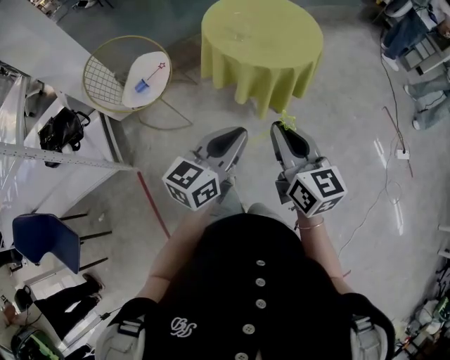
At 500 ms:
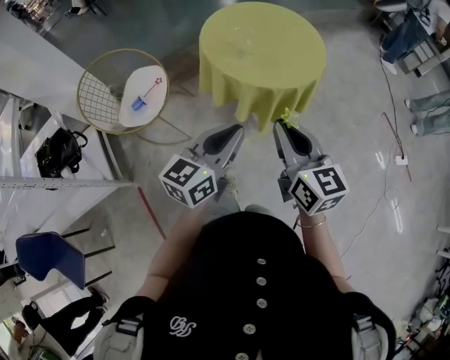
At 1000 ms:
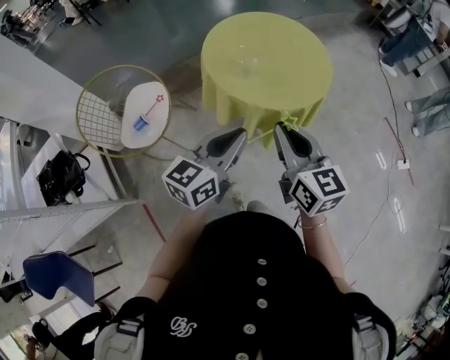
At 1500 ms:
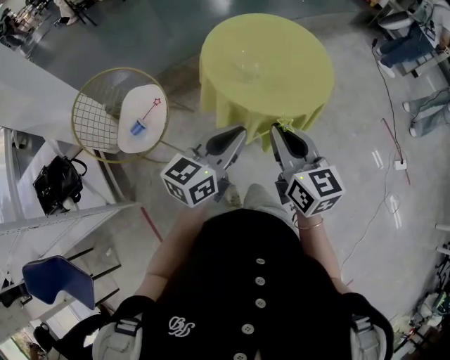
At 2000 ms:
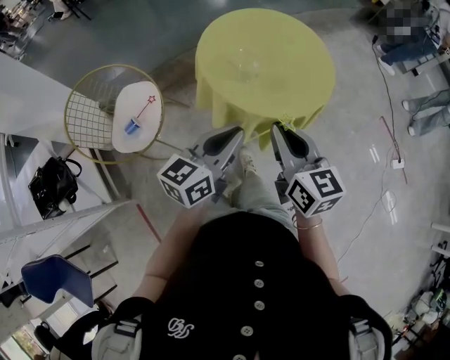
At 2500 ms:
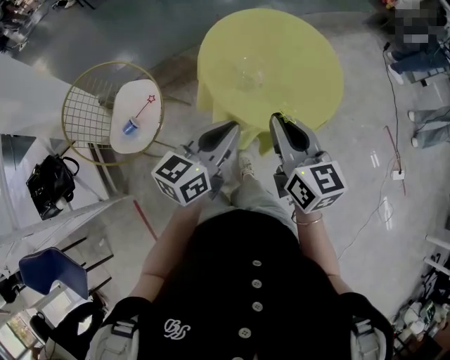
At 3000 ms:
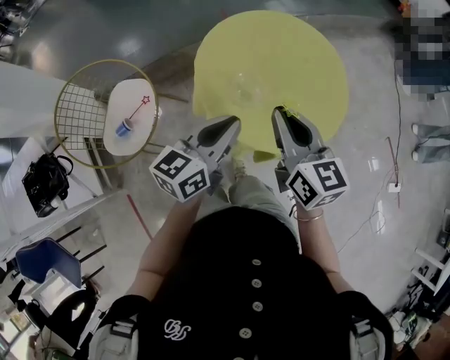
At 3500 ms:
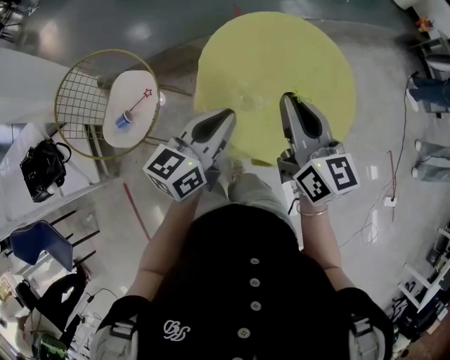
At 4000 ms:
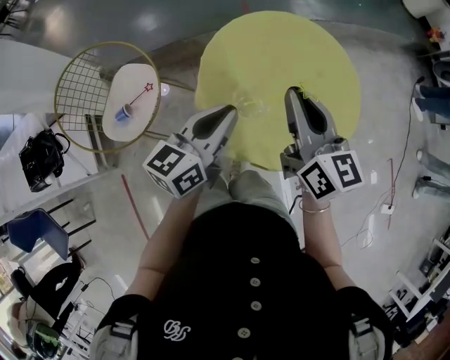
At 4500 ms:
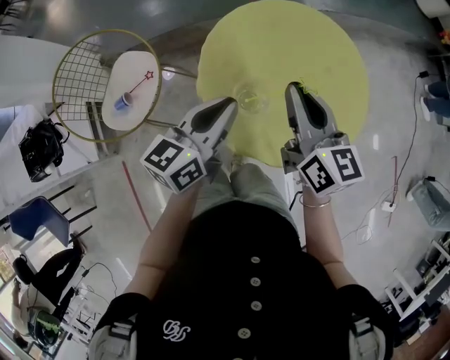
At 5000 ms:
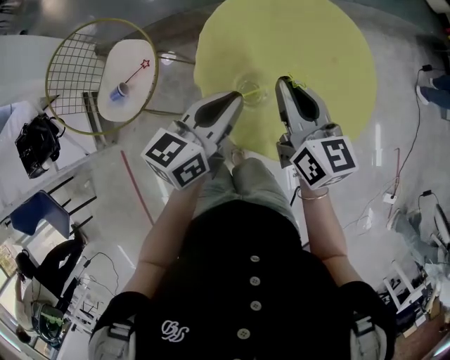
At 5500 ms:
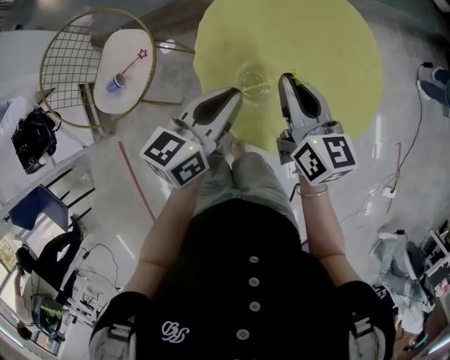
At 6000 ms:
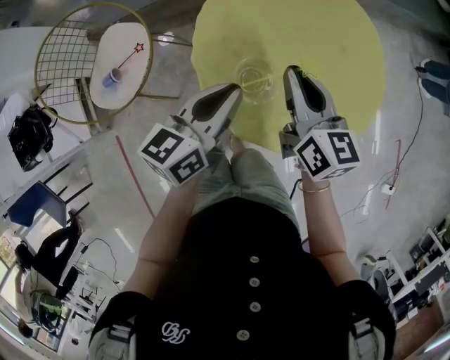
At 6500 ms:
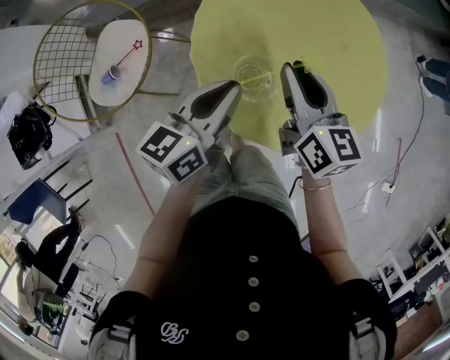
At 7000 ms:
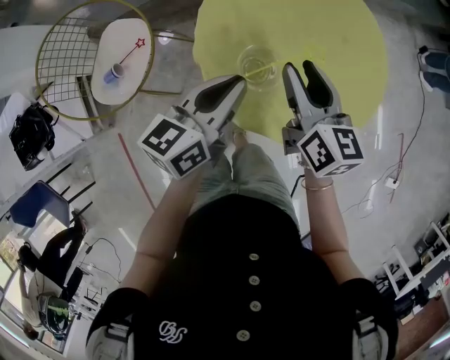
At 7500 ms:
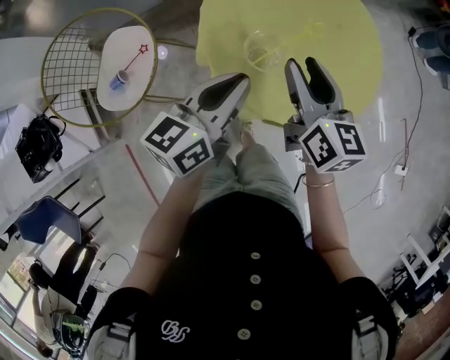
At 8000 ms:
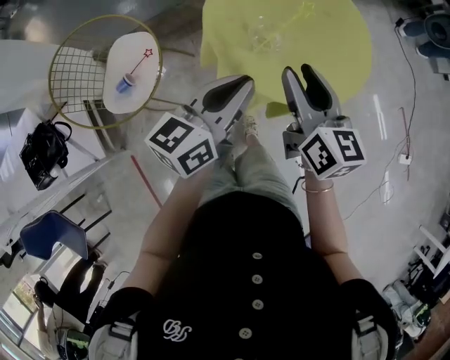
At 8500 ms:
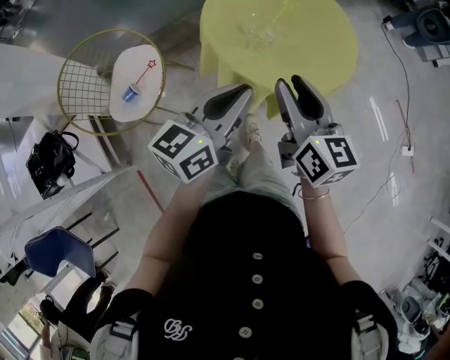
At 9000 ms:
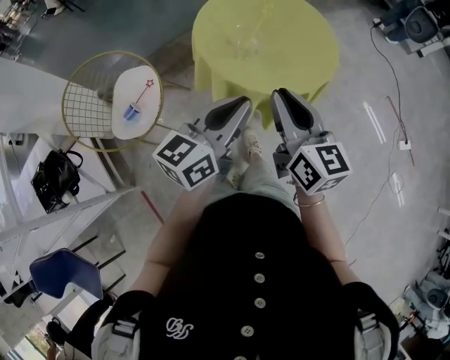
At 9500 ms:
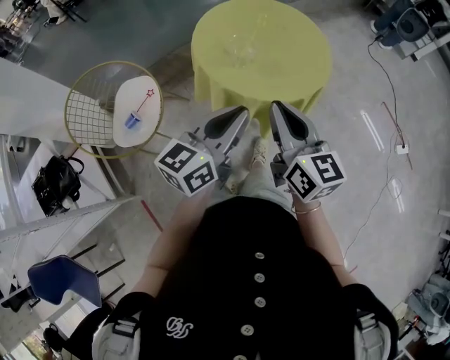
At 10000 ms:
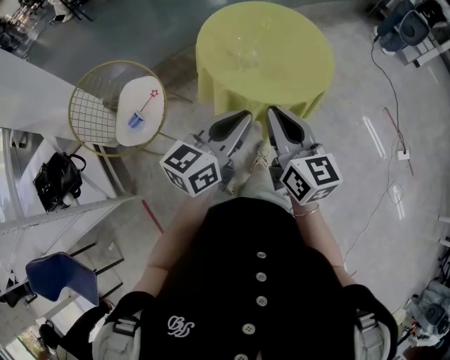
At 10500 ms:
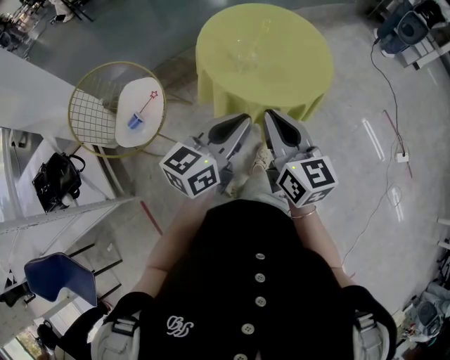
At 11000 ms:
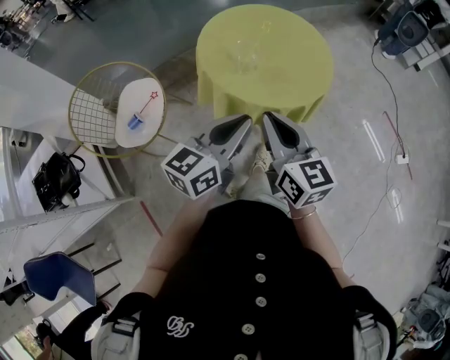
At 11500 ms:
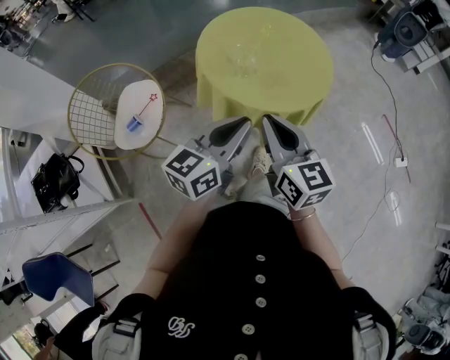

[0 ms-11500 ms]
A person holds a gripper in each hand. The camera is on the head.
0 ms to 2000 ms: Both grippers move forward, roughly 25 cm.
2000 ms to 4000 ms: The grippers both shift forward by some 25 cm.
4000 ms to 6000 ms: The right gripper shifts about 10 cm downward, while the left gripper heads downward, covering approximately 5 cm.
6000 ms to 7500 ms: The left gripper ends up approximately 5 cm from where it was, while the right gripper heads backward, covering roughly 5 cm, and opens its fingers.
7500 ms to 9500 ms: The right gripper travels backward by some 25 cm, and closes up. Meanwhile the left gripper moves backward and upward, approximately 20 cm, and changes its angle by approximately 20 degrees.
9500 ms to 11500 ms: The grippers move only a little.

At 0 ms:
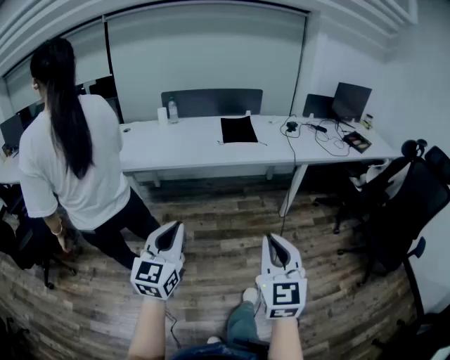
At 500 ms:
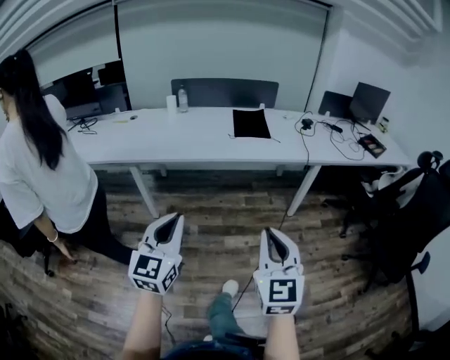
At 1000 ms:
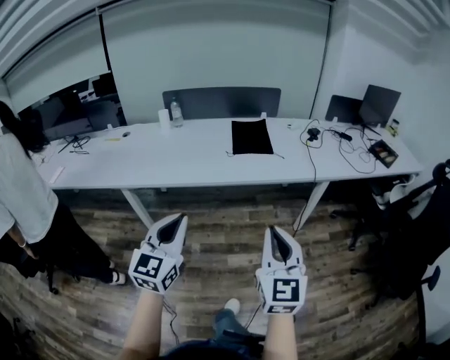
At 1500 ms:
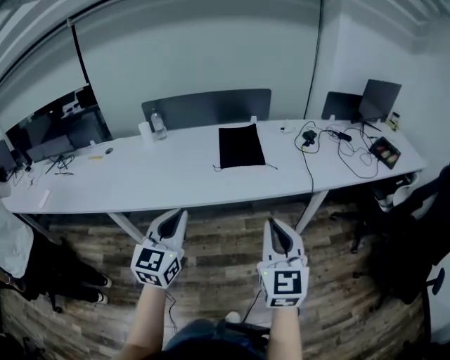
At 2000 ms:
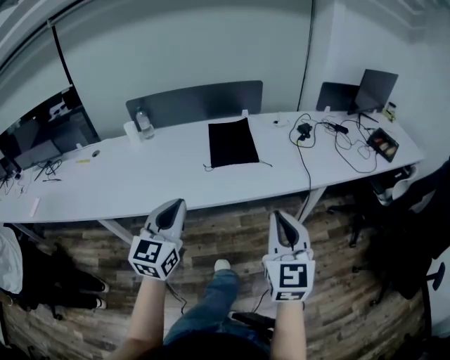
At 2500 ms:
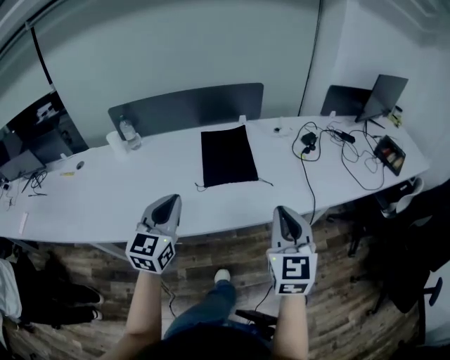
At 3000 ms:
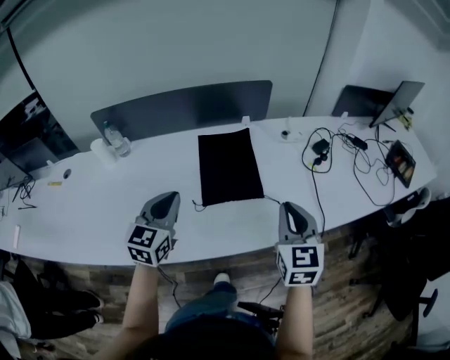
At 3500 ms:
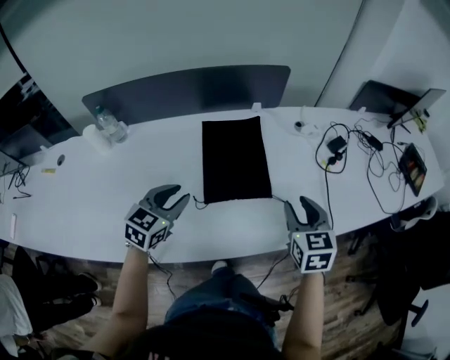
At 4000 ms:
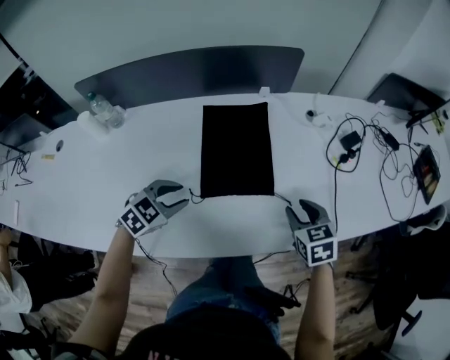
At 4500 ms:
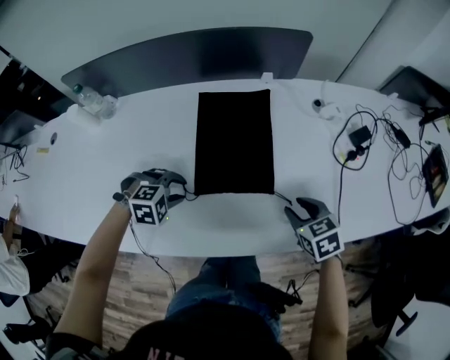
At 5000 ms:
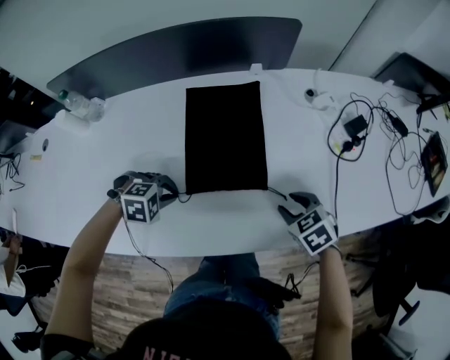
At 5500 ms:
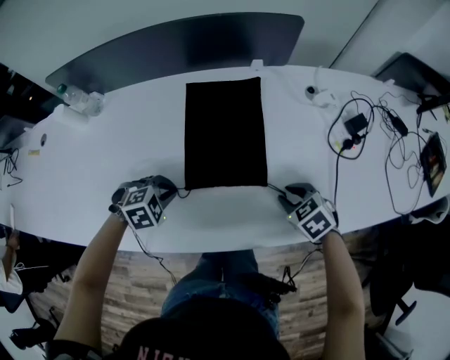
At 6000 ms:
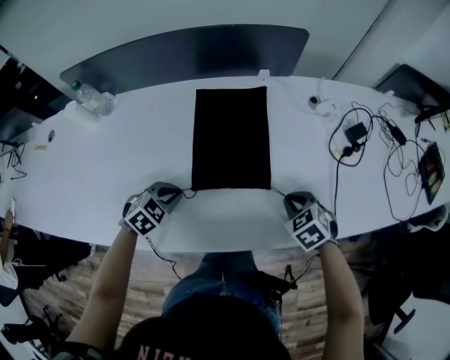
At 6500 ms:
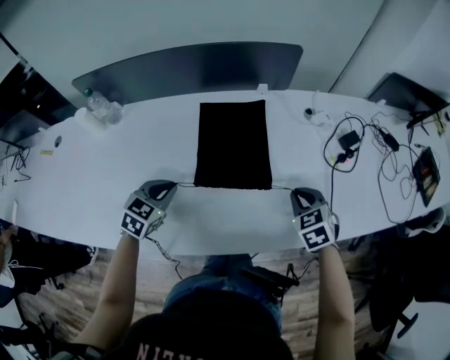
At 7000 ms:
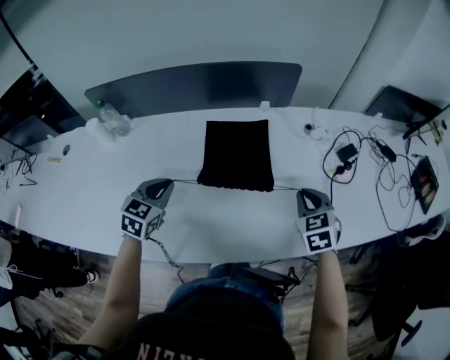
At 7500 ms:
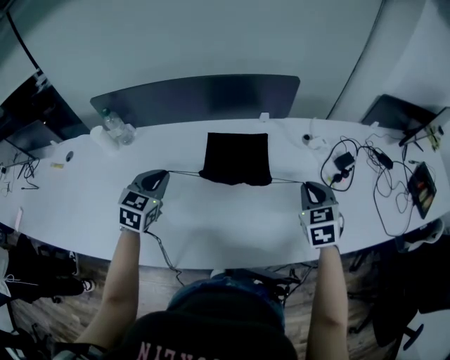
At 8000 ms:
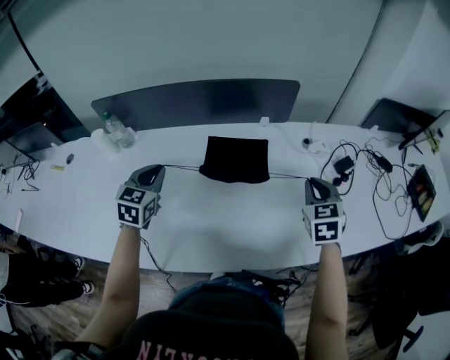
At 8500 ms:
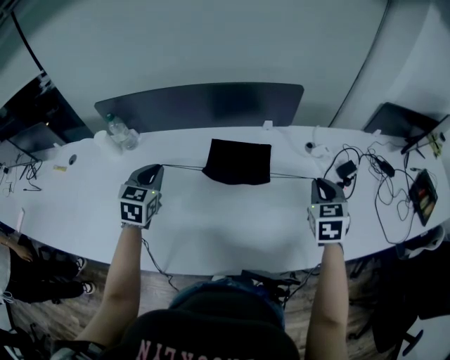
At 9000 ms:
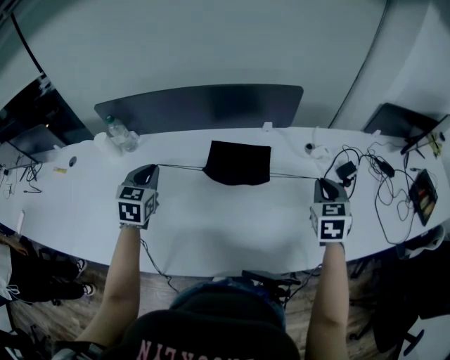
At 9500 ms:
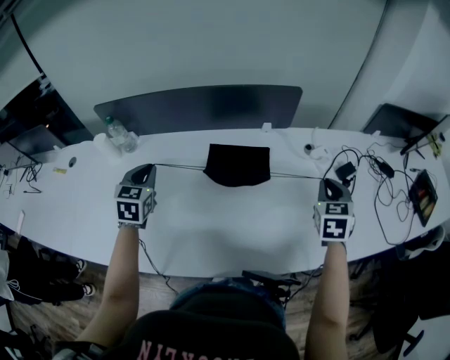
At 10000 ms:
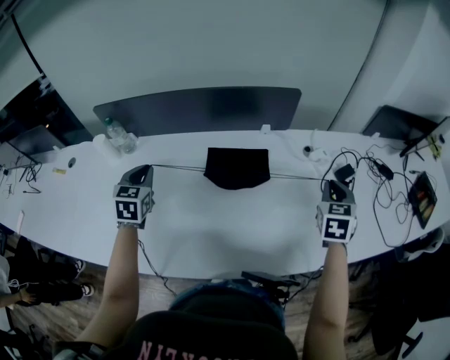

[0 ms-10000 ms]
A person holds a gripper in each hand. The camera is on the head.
0 ms to 2000 ms: Both grippers are carried forward, about 50 cm.
2000 ms to 4000 ms: Both grippers move forward and downward, approximately 50 cm. The left gripper angles its fingers downward, by some 50 degrees, and opens; the right gripper tilts its fingers about 40 degrees downward, and opens its fingers.
4000 ms to 6000 ms: Both grippers travel together downward, approximately 5 cm. The right gripper rotates roughly 30 degrees, and closes up; the left gripper closes up.
6000 ms to 8000 ms: The right gripper shifts roughly 20 cm upward and forward, and tilts its fingers roughly 30 degrees upward, while the left gripper travels upward, to the left and forward by approximately 20 cm, and tips its fingers upward by roughly 30 degrees.
8000 ms to 10000 ms: The left gripper changes place by some 5 cm; the right gripper is displaced to the right by some 5 cm.

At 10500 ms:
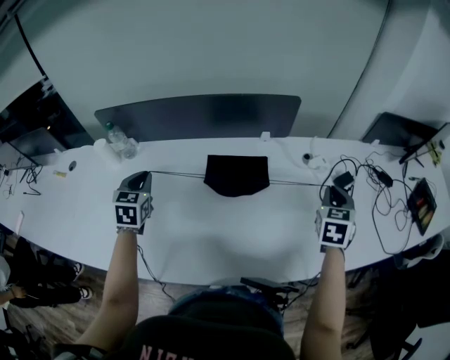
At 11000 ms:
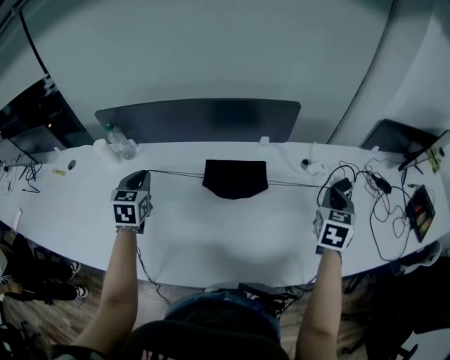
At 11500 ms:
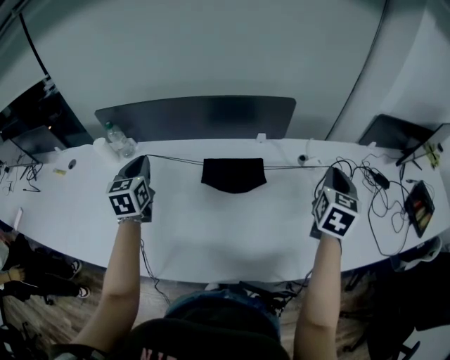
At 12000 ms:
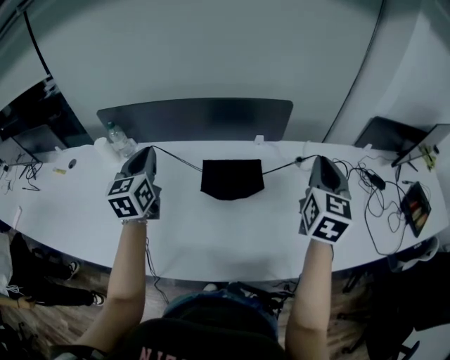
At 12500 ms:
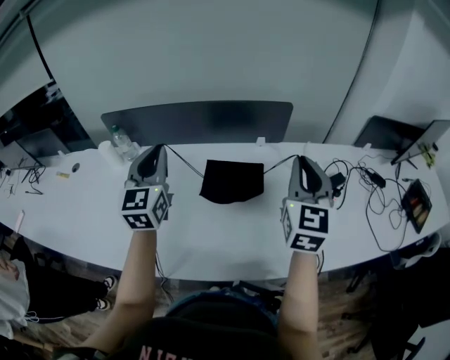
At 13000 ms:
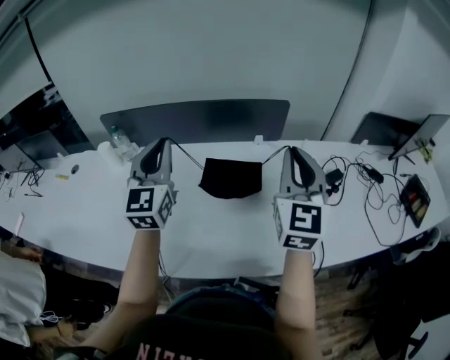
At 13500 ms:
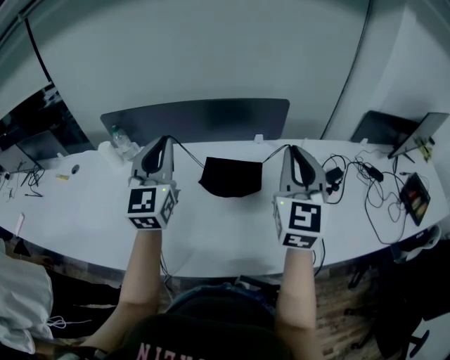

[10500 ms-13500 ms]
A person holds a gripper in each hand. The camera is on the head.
10500 ms to 12000 ms: The right gripper is displaced upward and to the left by about 15 cm, and changes its angle by approximately 30 degrees; the left gripper travels upward and to the right by about 15 cm, and swivels roughly 30 degrees.
12000 ms to 13500 ms: The left gripper is displaced upward and to the right by about 10 cm, and changes its angle by approximately 20 degrees, while the right gripper heads to the left and backward, covering approximately 10 cm.

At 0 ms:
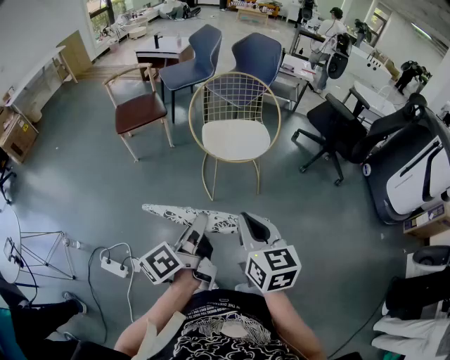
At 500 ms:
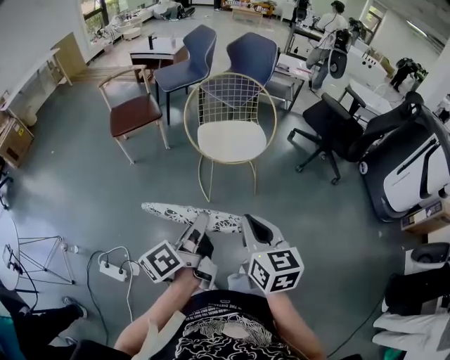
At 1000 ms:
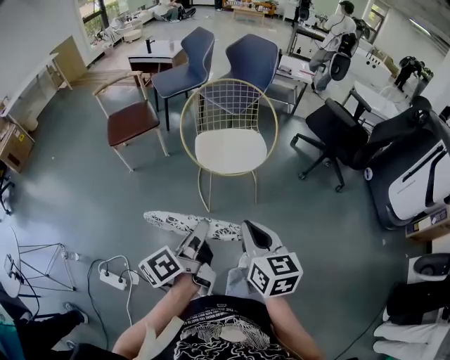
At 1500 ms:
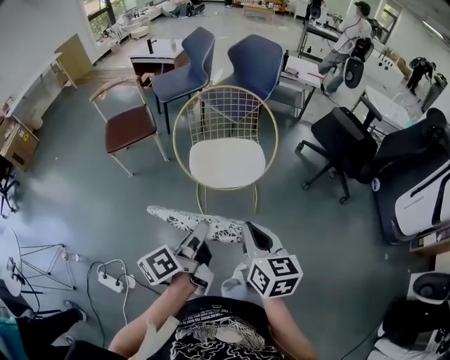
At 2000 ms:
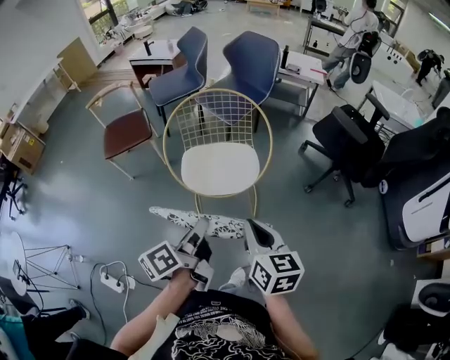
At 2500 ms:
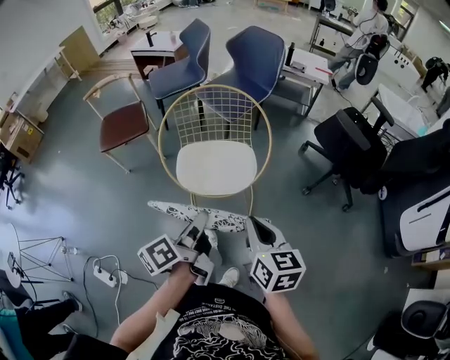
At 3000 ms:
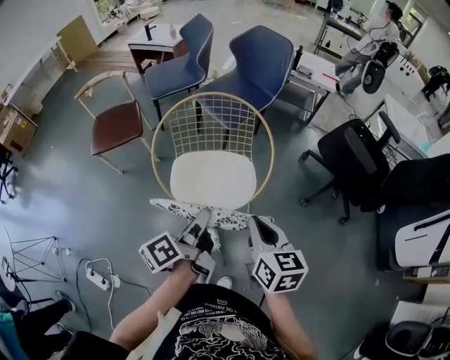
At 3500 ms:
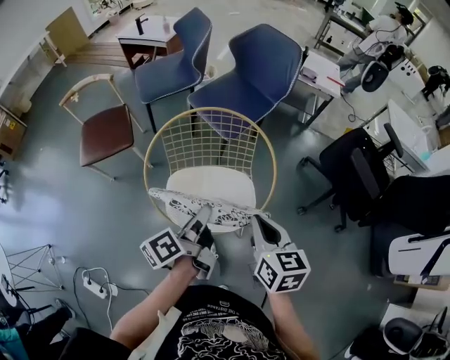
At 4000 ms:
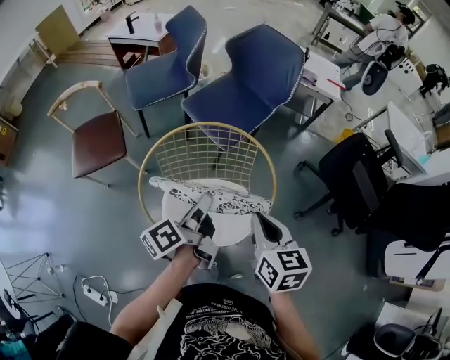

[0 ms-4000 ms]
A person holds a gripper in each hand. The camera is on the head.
0 ms to 2000 ms: The right gripper moves roughly 30 cm.
2000 ms to 4000 ms: The right gripper shifts by about 35 cm.
